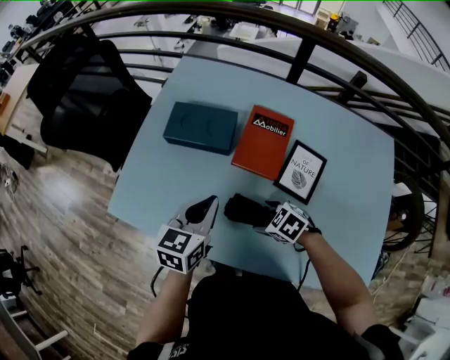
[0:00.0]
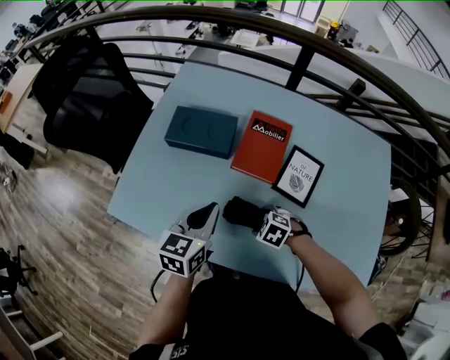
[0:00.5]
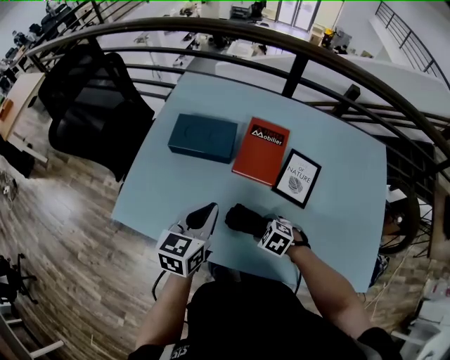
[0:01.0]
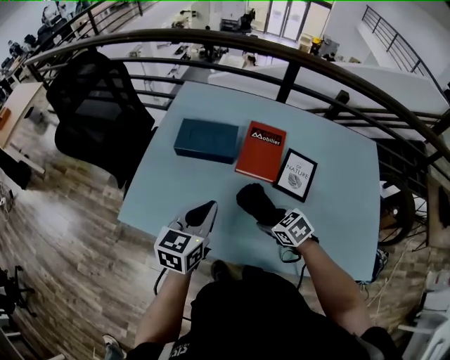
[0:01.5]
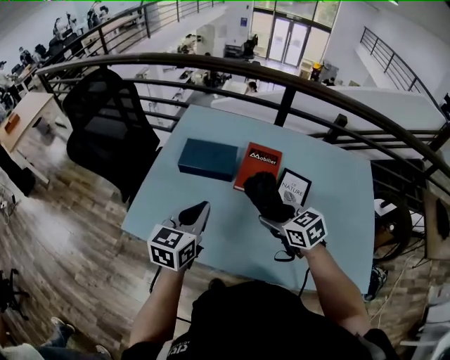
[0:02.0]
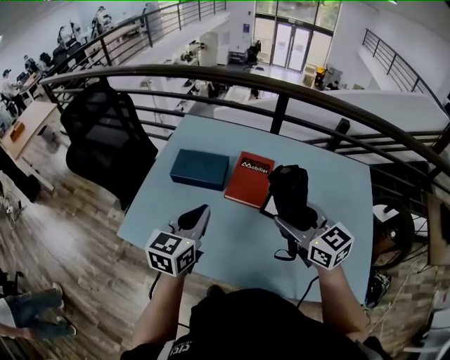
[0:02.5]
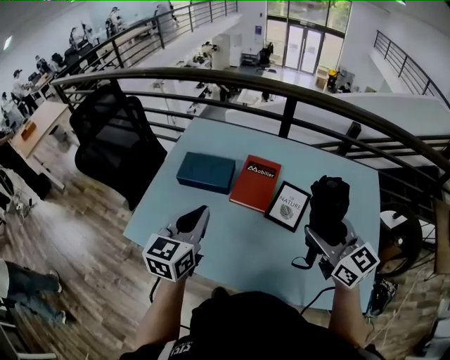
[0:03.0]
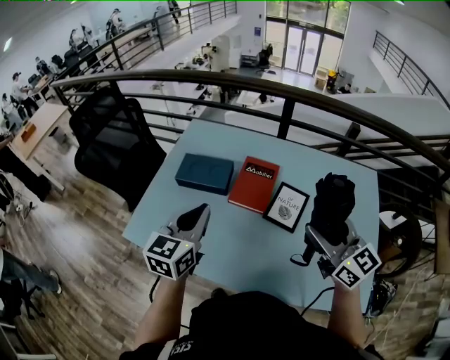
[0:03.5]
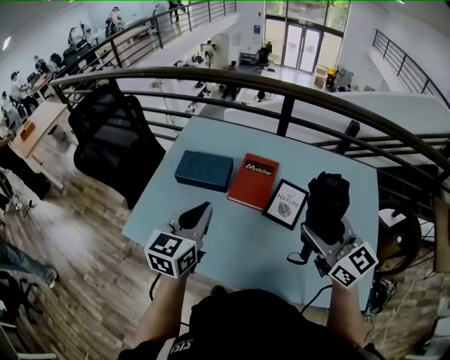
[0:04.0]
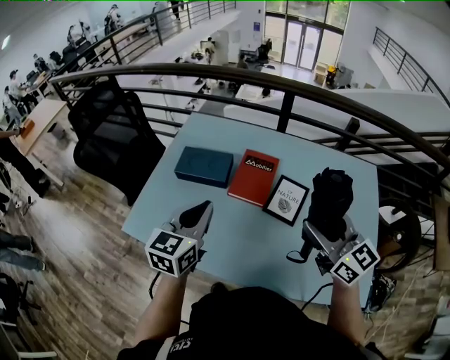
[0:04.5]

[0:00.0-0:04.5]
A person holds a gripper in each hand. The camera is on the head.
0:00.0 to 0:02.0: The right gripper heads upward, covering approximately 20 cm, and rotates about 40 degrees, while the left gripper goes about 10 cm upward and to the left.
0:02.0 to 0:04.5: The right gripper moves upward and to the right, about 25 cm, and tilts its fingers about 40 degrees upward, while the left gripper is displaced to the right and upward by some 10 cm.

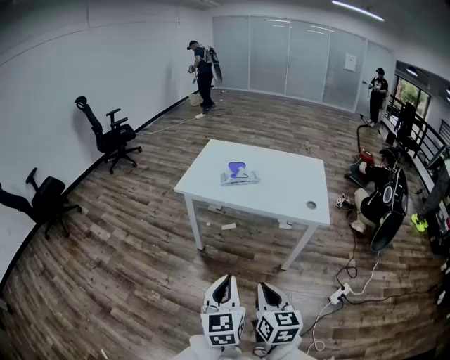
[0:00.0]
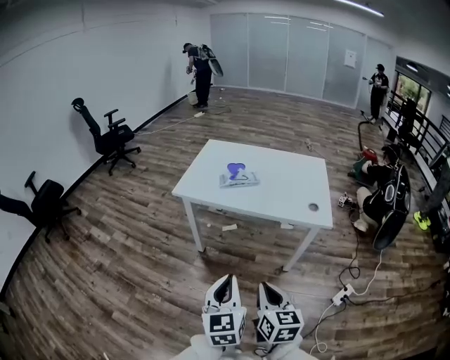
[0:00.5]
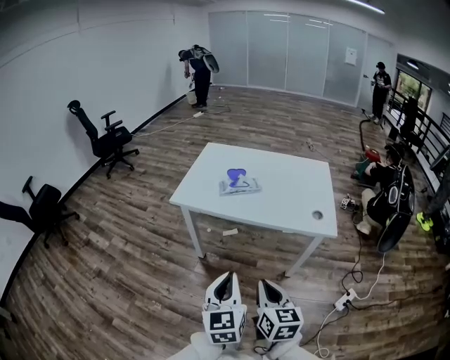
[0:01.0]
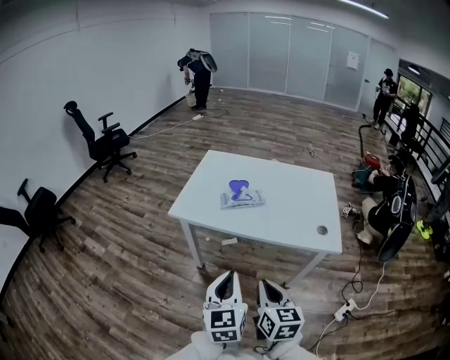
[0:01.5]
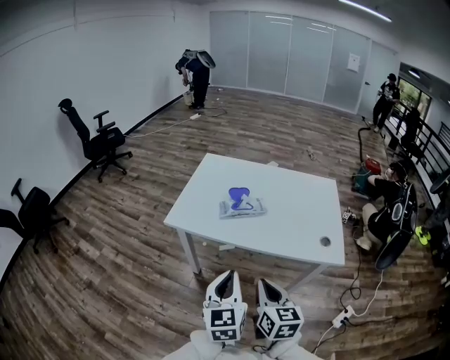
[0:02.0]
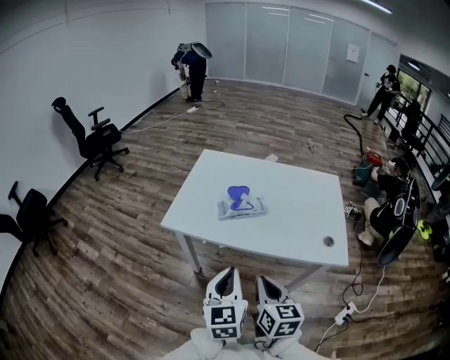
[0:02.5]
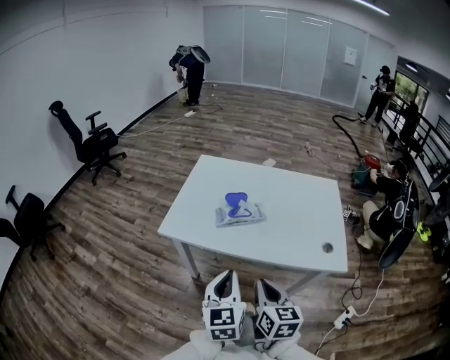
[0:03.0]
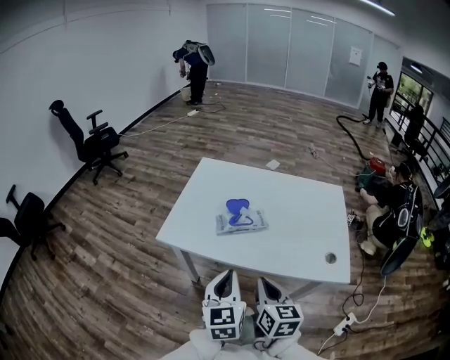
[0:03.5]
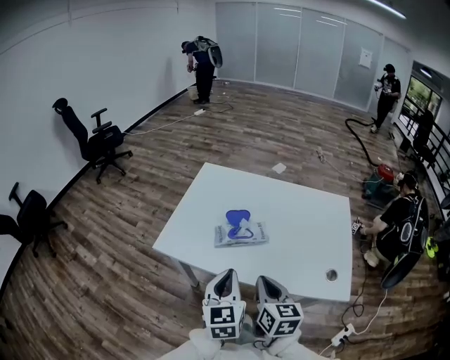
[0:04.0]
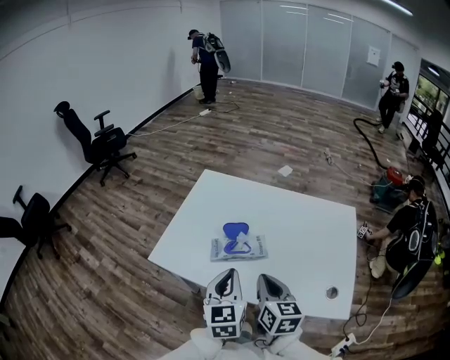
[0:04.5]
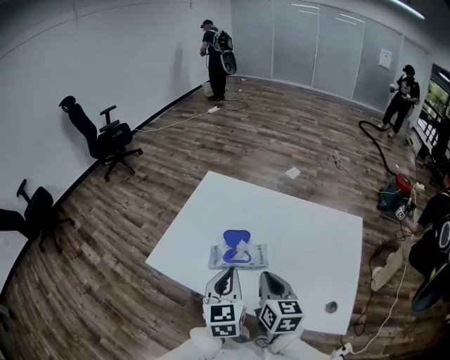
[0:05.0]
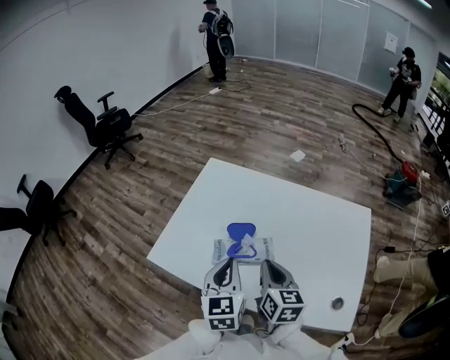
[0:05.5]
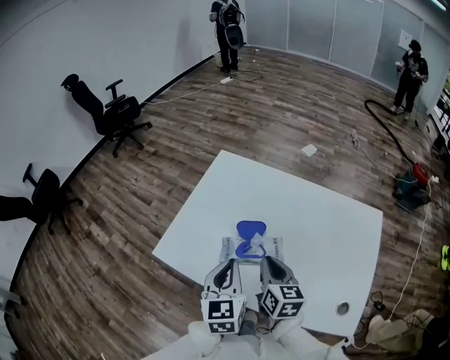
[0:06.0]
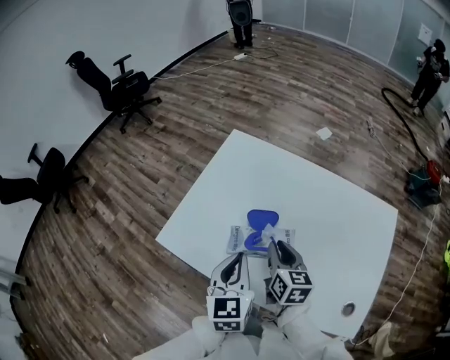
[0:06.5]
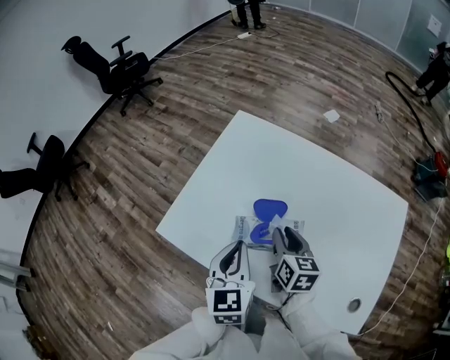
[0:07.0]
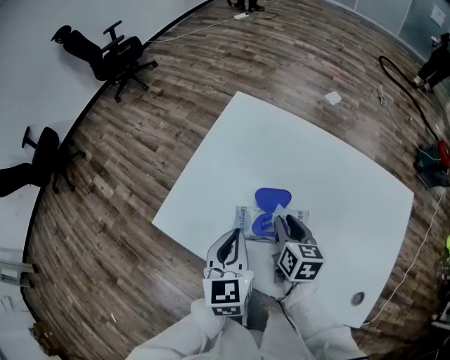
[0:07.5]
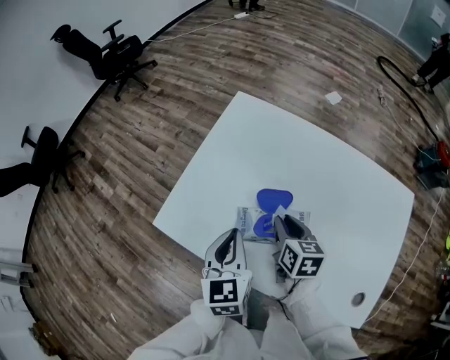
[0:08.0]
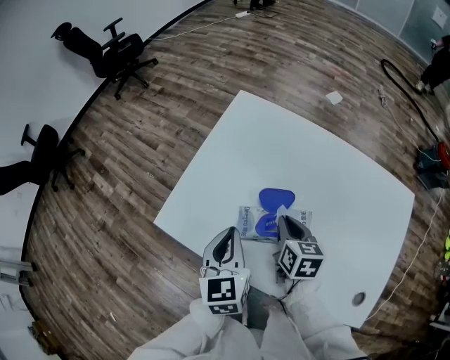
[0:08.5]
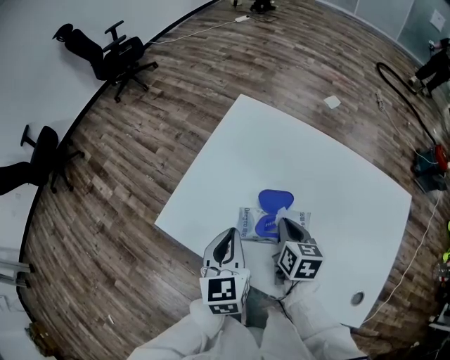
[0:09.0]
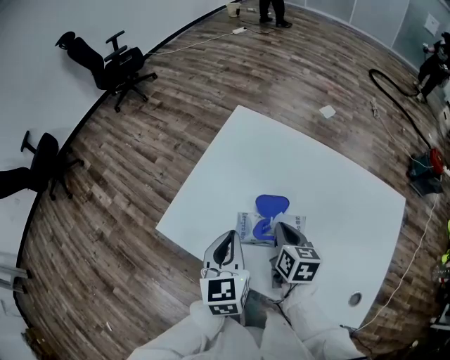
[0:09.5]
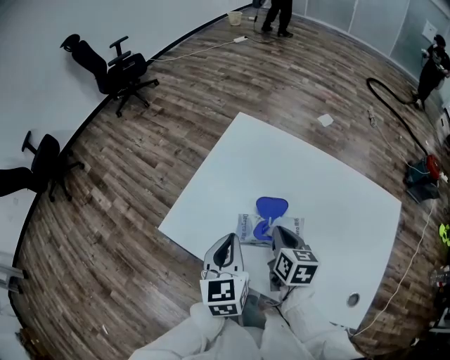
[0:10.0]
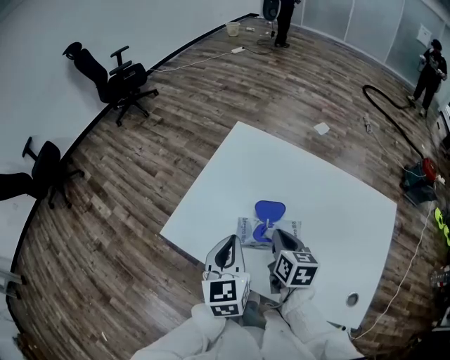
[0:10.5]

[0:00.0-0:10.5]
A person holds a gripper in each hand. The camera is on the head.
0:00.0 to 0:02.0: The two grippers go roughly 25 cm forward.
0:02.0 to 0:04.0: Both grippers travel together forward, about 15 cm.
0:04.0 to 0:06.5: The two grippers go approximately 20 cm forward.
0:06.5 to 0:08.5: The left gripper ends up about 10 cm from where it was, while the right gripper travels downward by approximately 5 cm.
0:08.5 to 0:10.5: The right gripper goes about 5 cm upward.

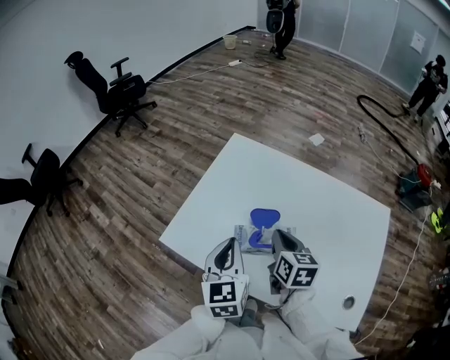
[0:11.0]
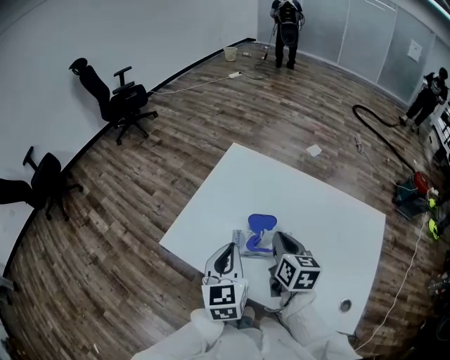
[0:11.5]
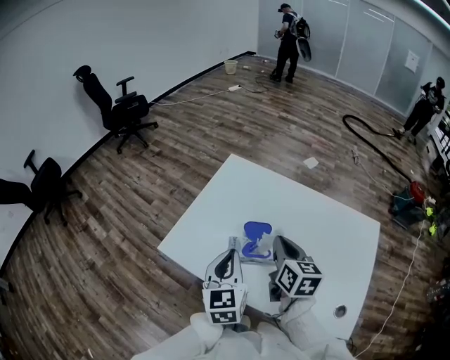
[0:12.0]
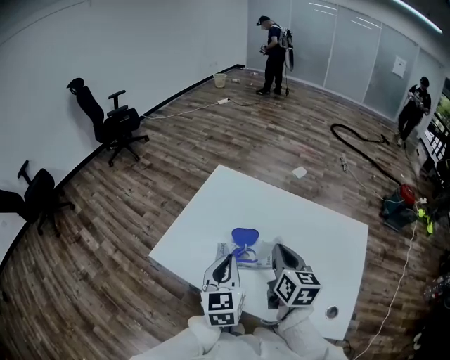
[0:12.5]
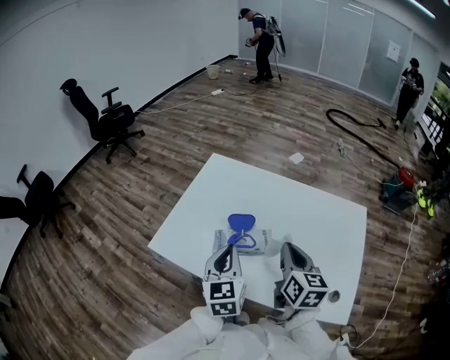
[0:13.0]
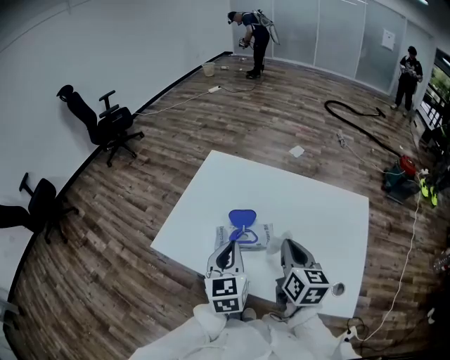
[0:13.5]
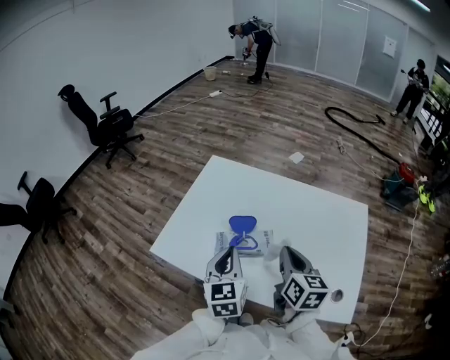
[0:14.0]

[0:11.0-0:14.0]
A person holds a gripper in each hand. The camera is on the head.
0:11.0 to 0:12.5: The left gripper moves about 5 cm. Meanwhile the right gripper moves upward and to the right, some 10 cm.
0:12.5 to 0:14.0: The right gripper moves backward, roughly 5 cm.

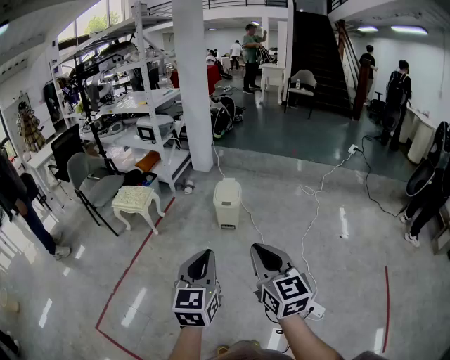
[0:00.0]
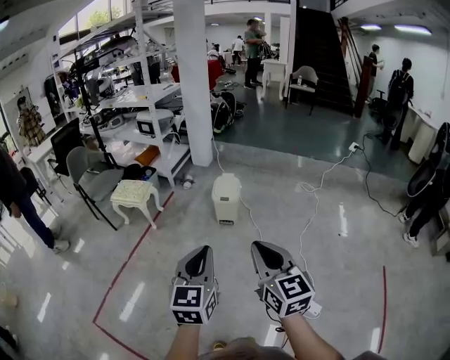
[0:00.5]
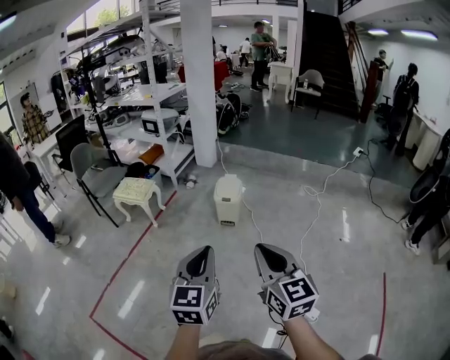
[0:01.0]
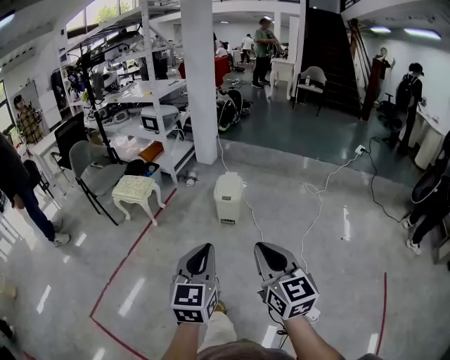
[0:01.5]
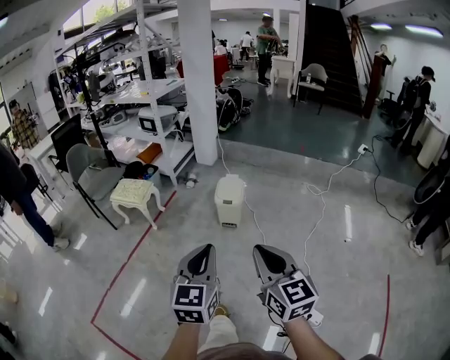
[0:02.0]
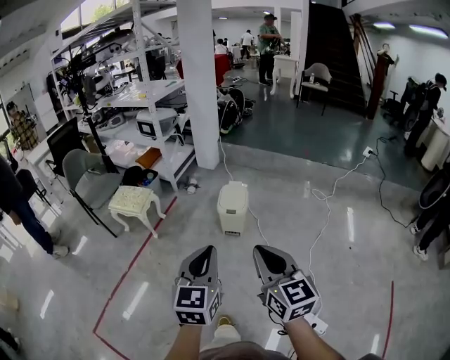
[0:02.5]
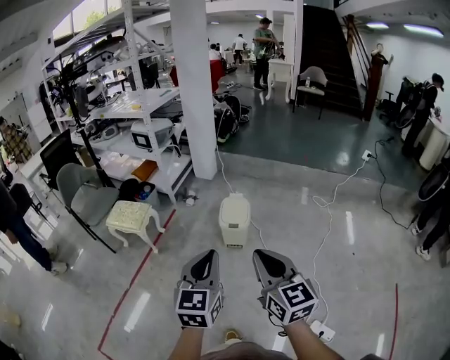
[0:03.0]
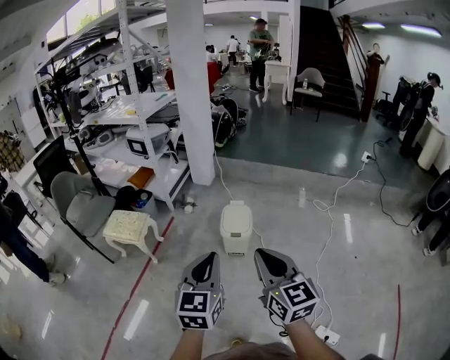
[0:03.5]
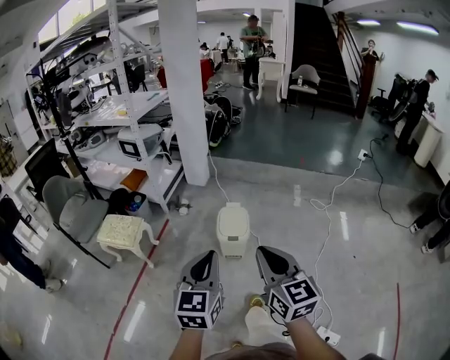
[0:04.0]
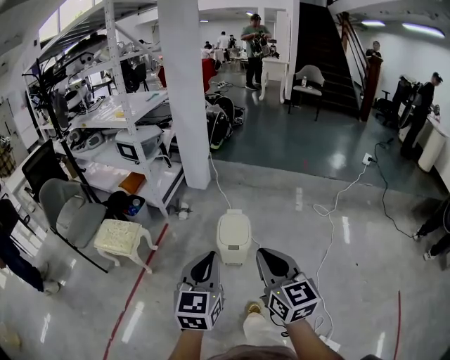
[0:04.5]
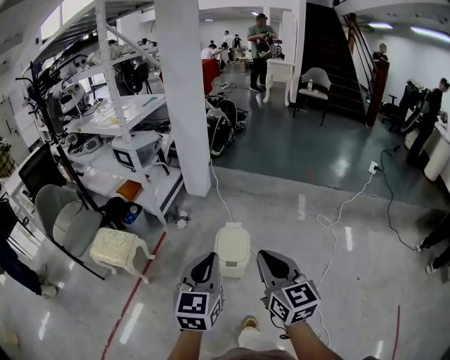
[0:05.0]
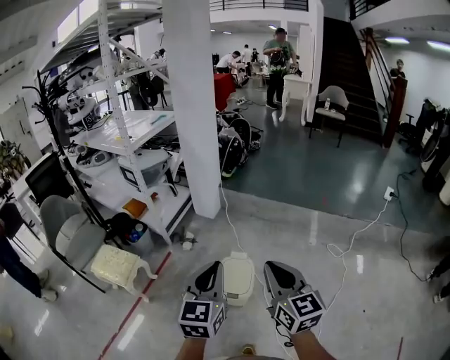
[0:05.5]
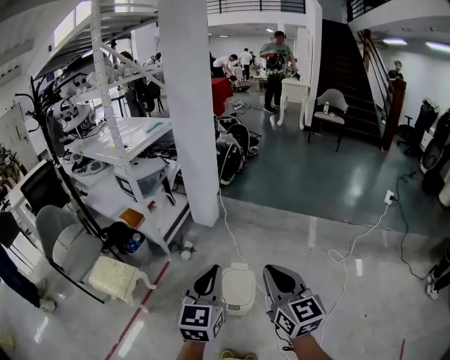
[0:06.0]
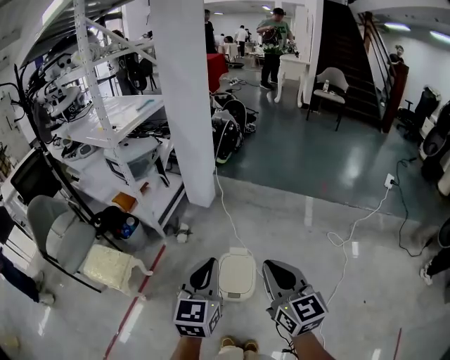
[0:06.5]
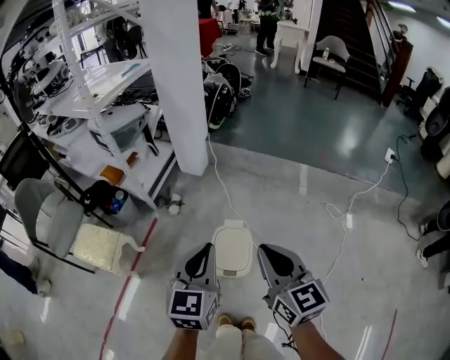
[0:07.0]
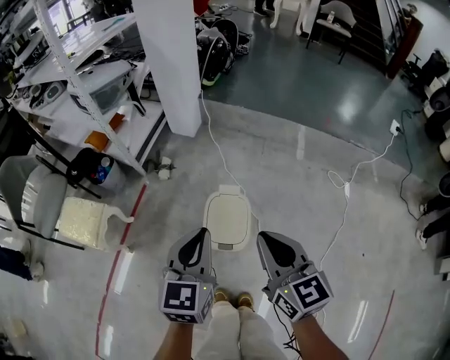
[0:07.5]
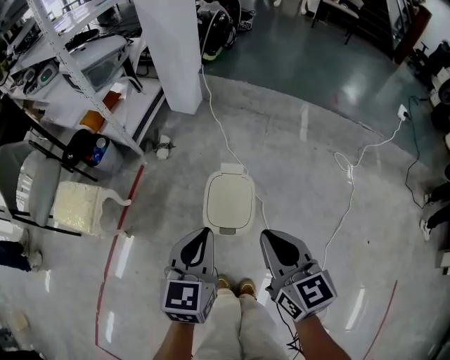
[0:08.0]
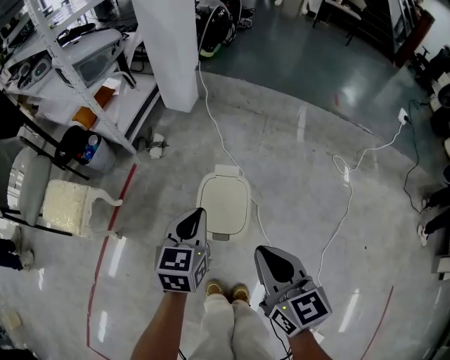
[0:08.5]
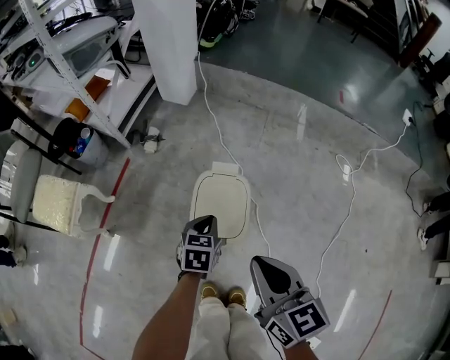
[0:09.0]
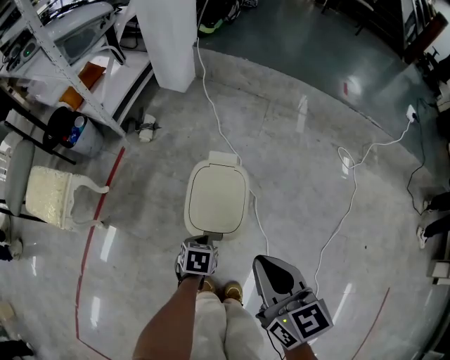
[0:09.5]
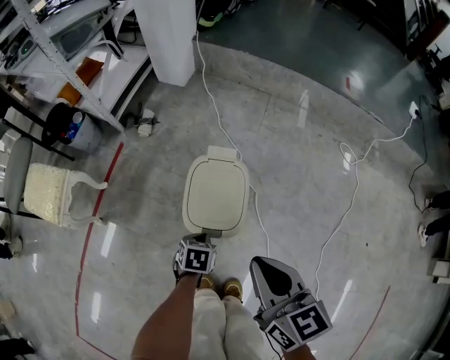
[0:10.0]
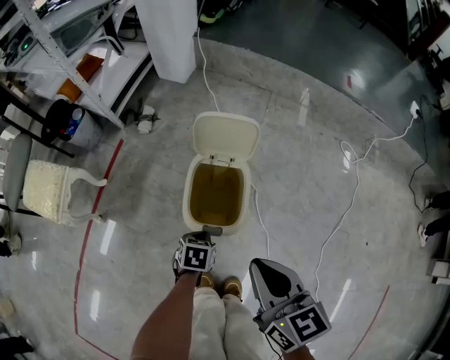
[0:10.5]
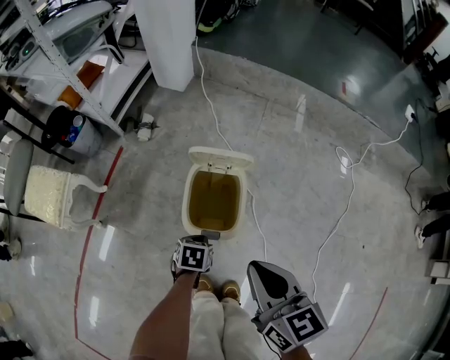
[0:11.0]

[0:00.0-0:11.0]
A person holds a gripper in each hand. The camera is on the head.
0:00.0 to 0:02.0: The grippers both shift forward by some 5 cm.
0:02.0 to 0:03.5: The two grippers go about 25 cm forward.
0:03.5 to 0:05.5: Both grippers move forward, approximately 35 cm.
0:05.5 to 0:07.5: The two grippers go some 20 cm downward and forward.
0:07.5 to 0:09.0: The left gripper is displaced downward by approximately 35 cm, and turns by about 30 degrees. The right gripper travels downward by approximately 15 cm.
0:09.0 to 0:11.0: The left gripper is displaced downward and backward by some 15 cm, and changes its angle by about 20 degrees.
